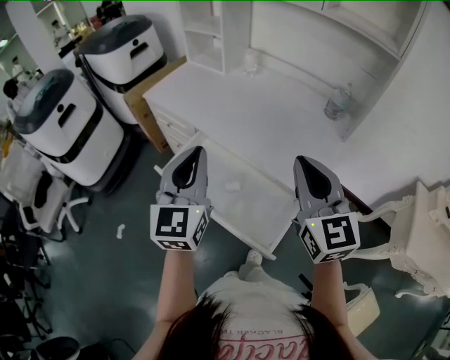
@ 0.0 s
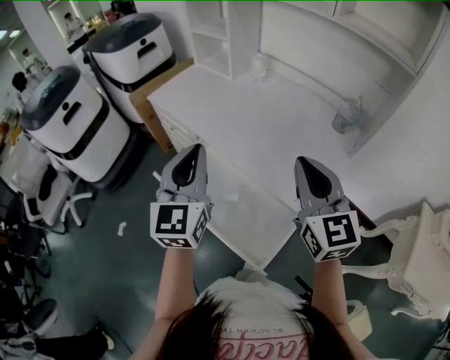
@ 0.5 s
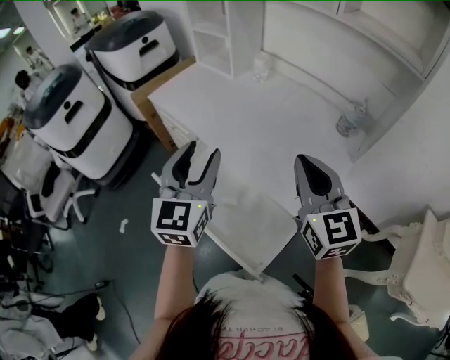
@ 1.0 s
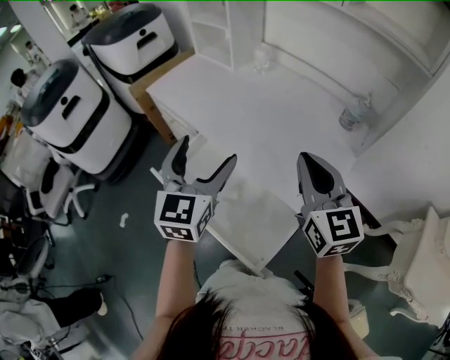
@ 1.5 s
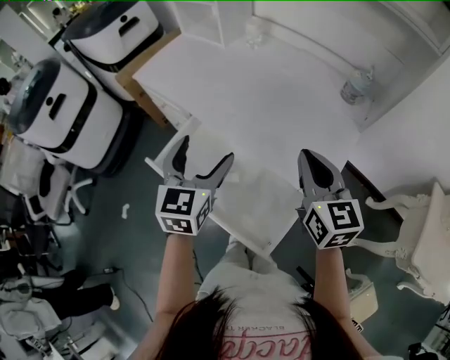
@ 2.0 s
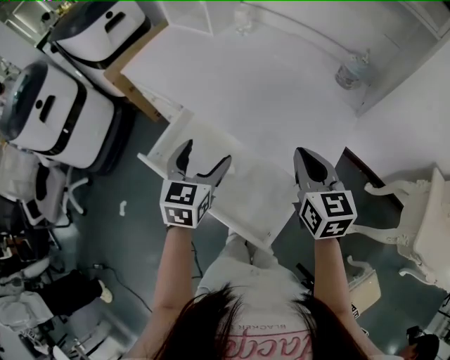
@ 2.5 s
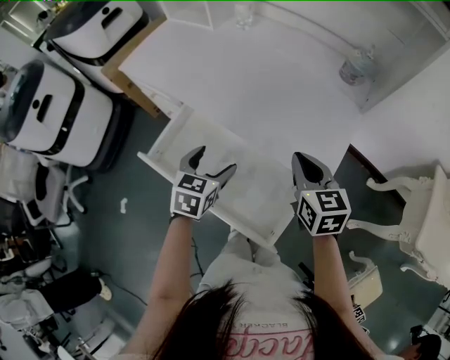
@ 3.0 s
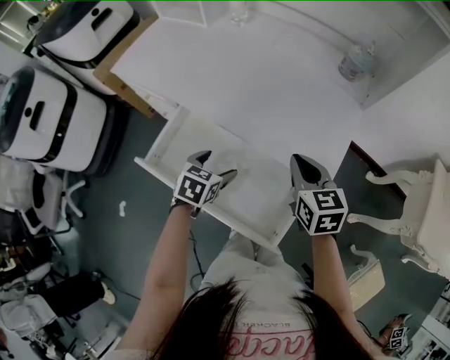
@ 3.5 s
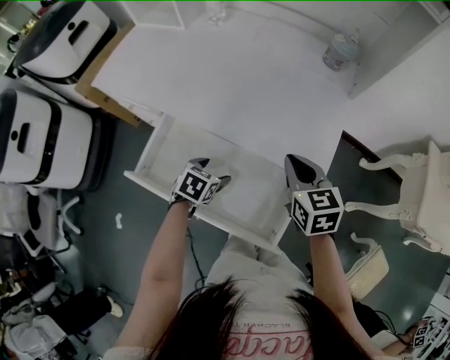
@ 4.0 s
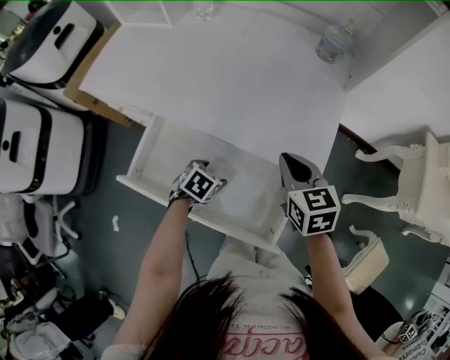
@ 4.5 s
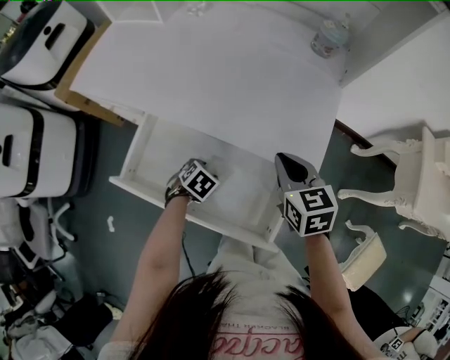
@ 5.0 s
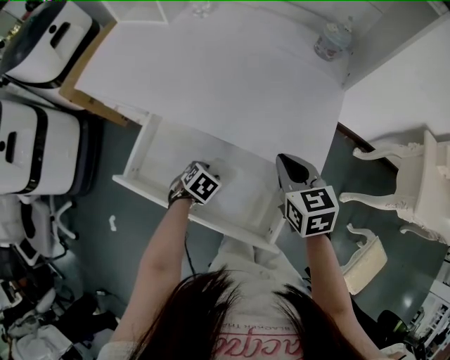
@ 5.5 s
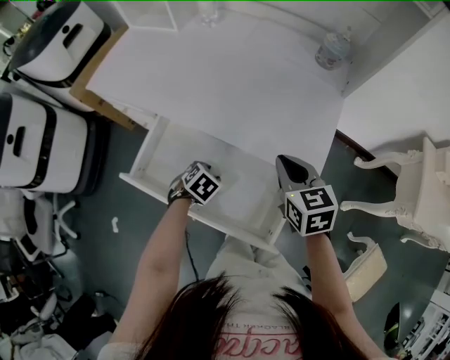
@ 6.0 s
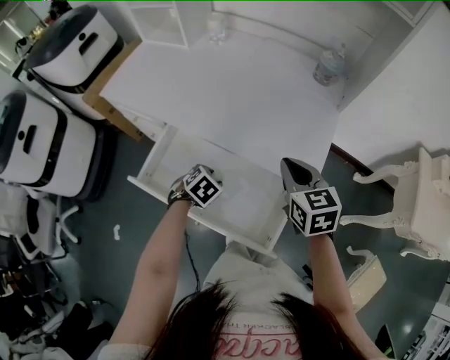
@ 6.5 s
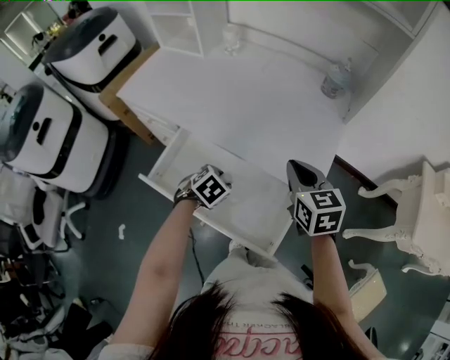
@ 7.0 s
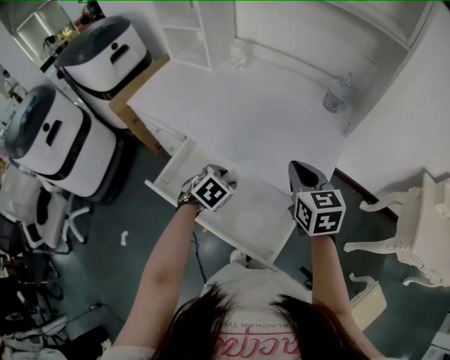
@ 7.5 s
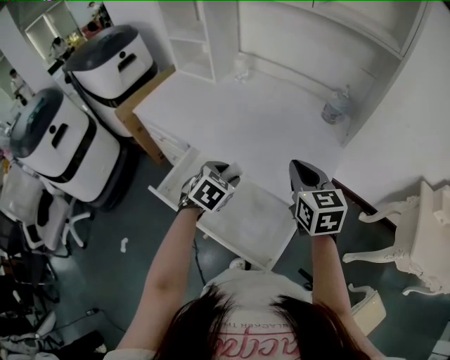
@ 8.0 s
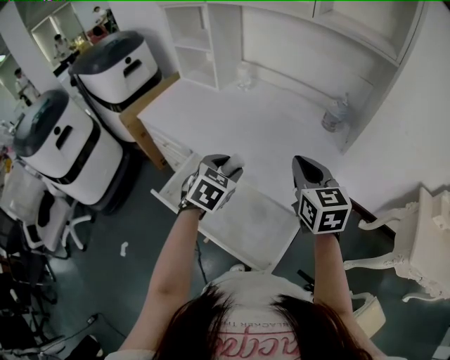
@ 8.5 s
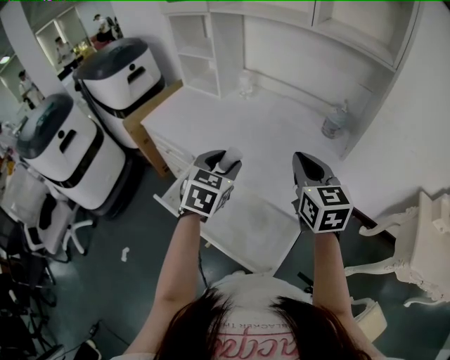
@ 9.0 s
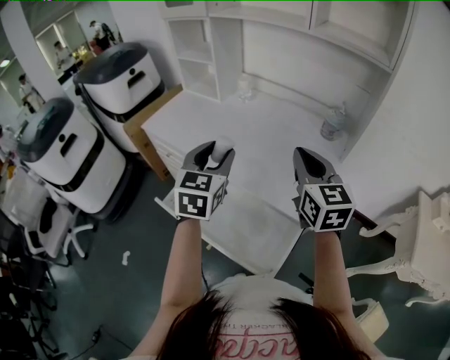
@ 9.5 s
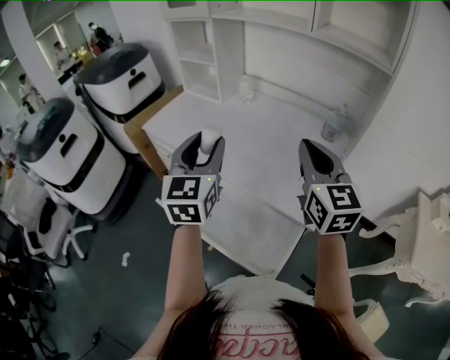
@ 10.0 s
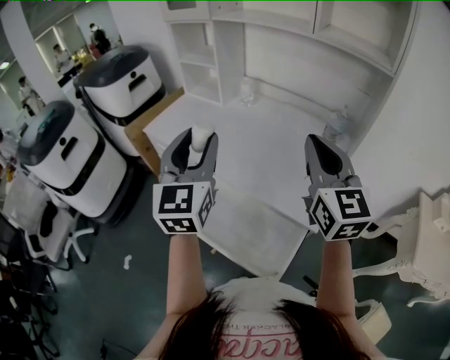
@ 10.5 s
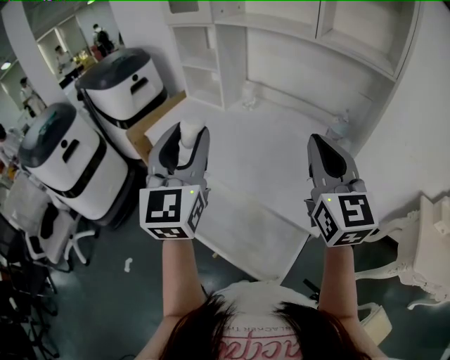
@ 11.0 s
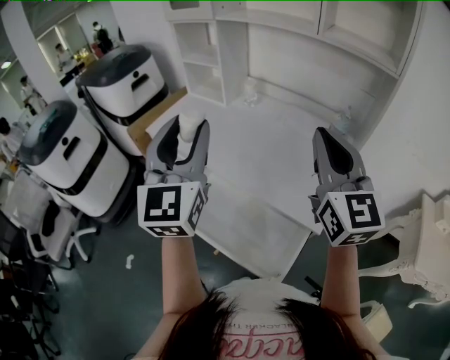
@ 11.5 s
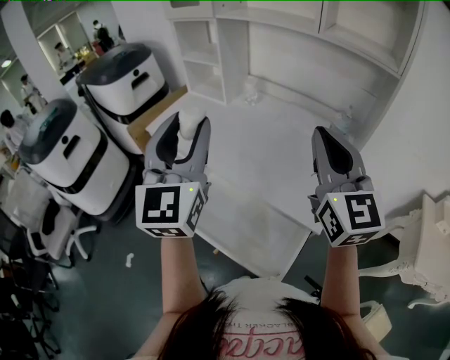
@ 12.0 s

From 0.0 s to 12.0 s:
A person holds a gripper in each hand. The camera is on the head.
From 0.0 s to 2.0 s: The right gripper goes about 15 cm downward, forward and to the right. Meanwhile the left gripper heads downward and forward, covering some 15 cm, and opens.
From 2.0 s to 4.0 s: The right gripper travels downward by approximately 15 cm, and changes its angle by some 20 degrees; the left gripper goes roughly 25 cm downward, and tilts its fingers roughly 40 degrees downward.
From 4.0 s to 6.0 s: The left gripper closes its fingers.
From 6.0 s to 8.0 s: The left gripper moves upward, approximately 20 cm, and turns by about 30 degrees; the right gripper heads upward, covering roughly 10 cm.
From 8.0 s to 10.0 s: The left gripper travels upward by approximately 25 cm, and points its fingers some 50 degrees further upward, while the right gripper travels upward by approximately 15 cm, and swivels some 20 degrees.
From 10.0 s to 12.0 s: The grippers both shift upward by about 10 cm.

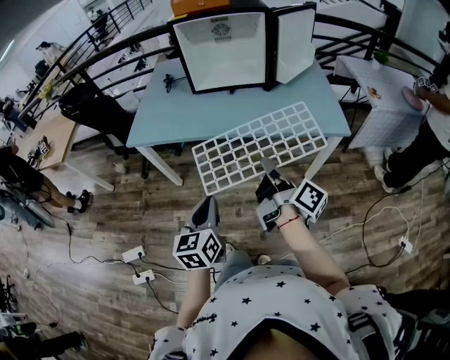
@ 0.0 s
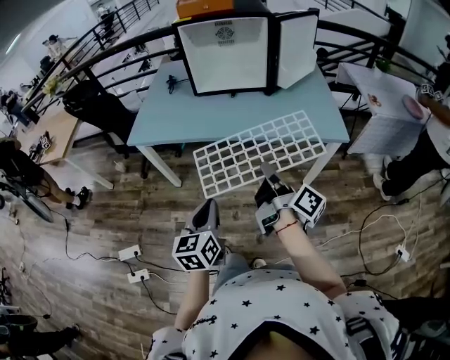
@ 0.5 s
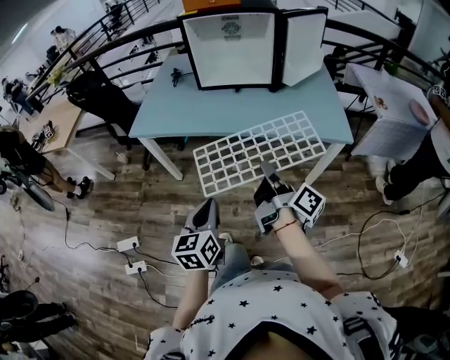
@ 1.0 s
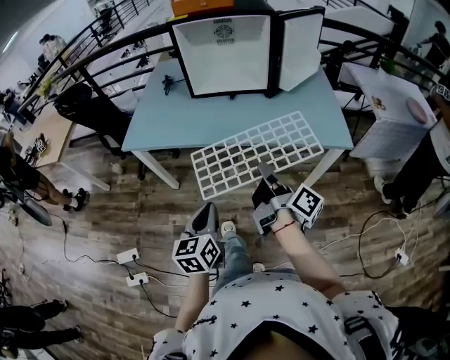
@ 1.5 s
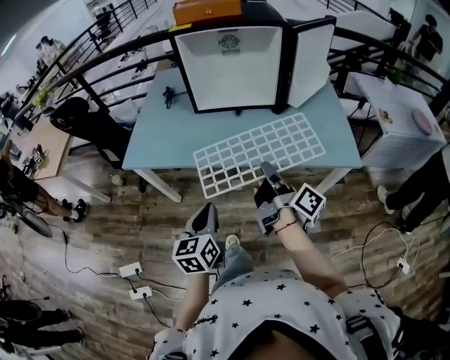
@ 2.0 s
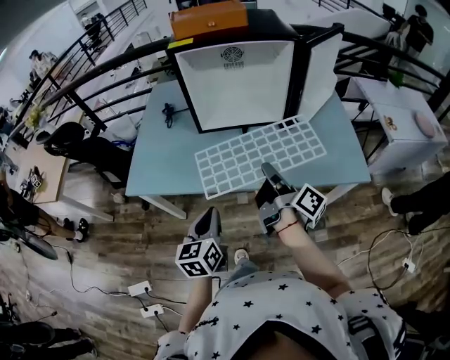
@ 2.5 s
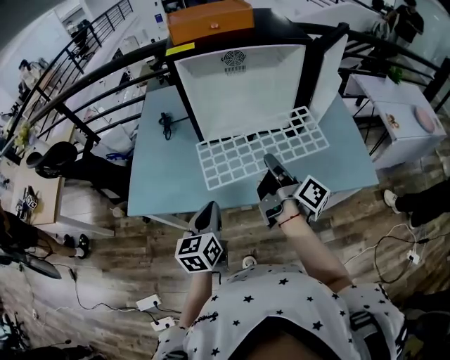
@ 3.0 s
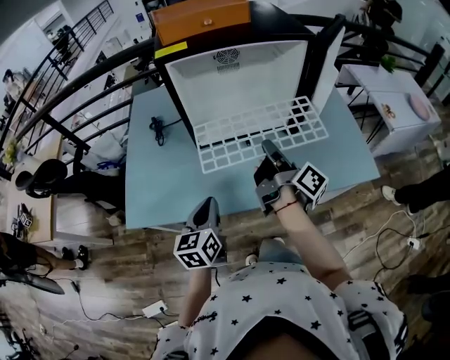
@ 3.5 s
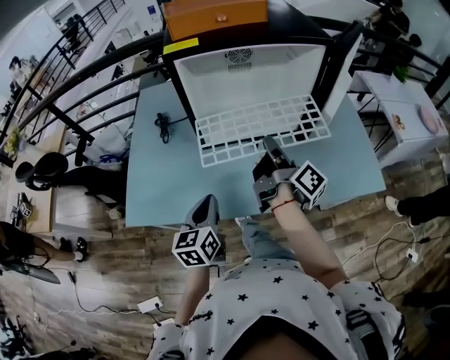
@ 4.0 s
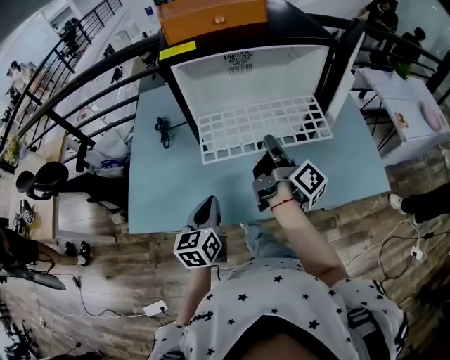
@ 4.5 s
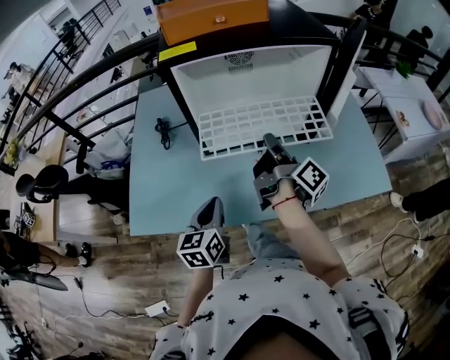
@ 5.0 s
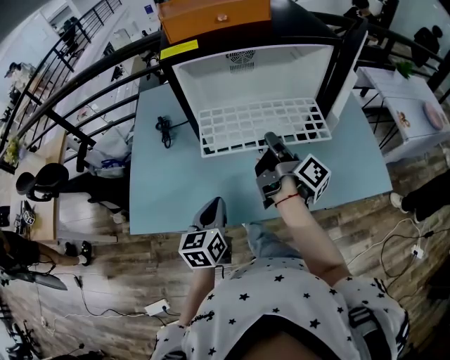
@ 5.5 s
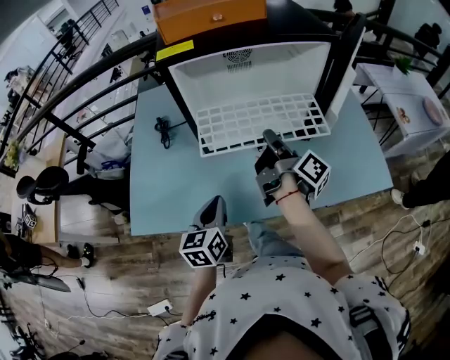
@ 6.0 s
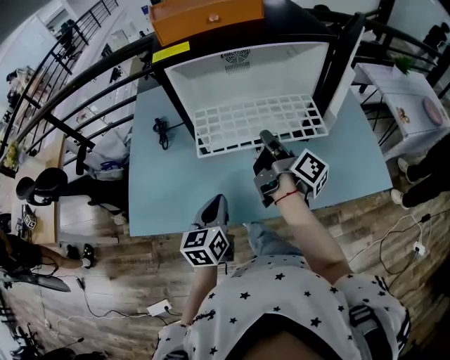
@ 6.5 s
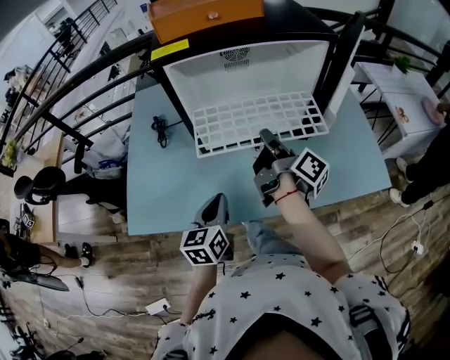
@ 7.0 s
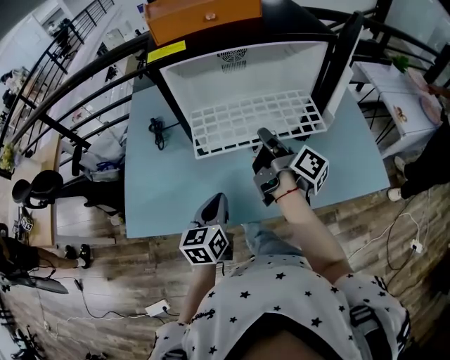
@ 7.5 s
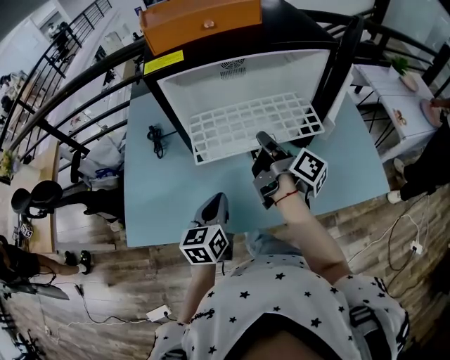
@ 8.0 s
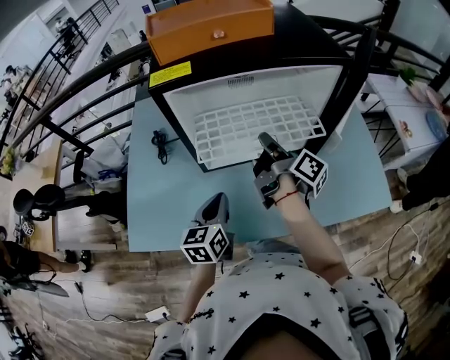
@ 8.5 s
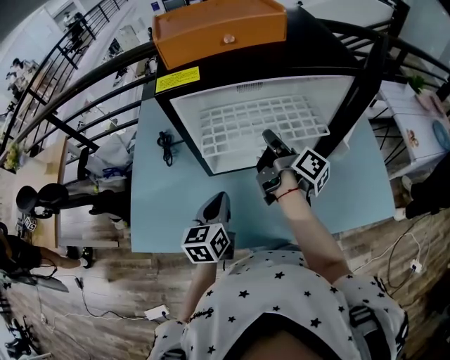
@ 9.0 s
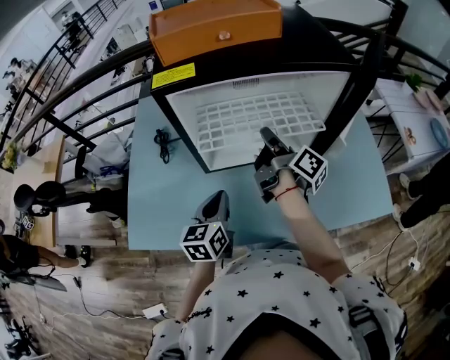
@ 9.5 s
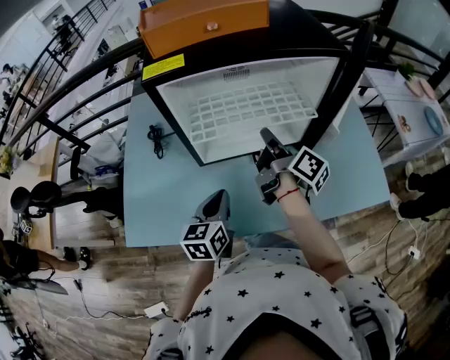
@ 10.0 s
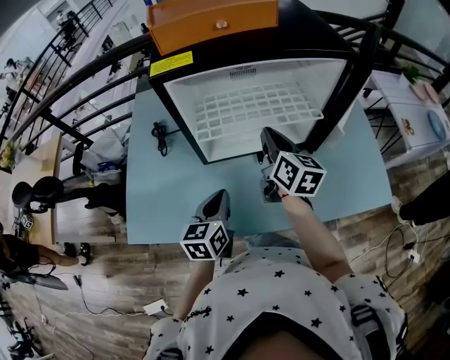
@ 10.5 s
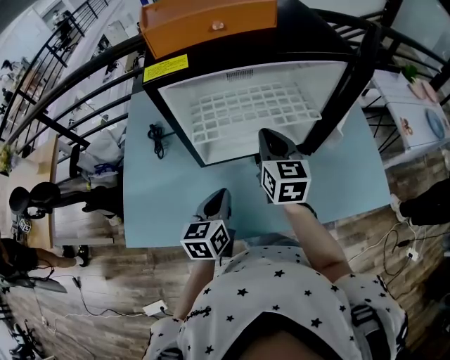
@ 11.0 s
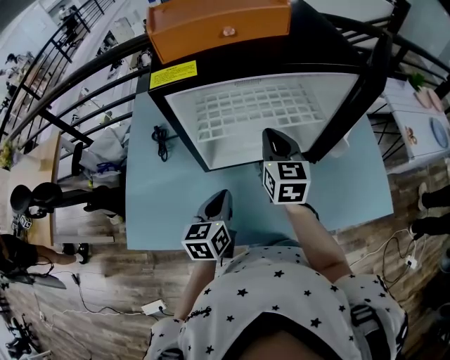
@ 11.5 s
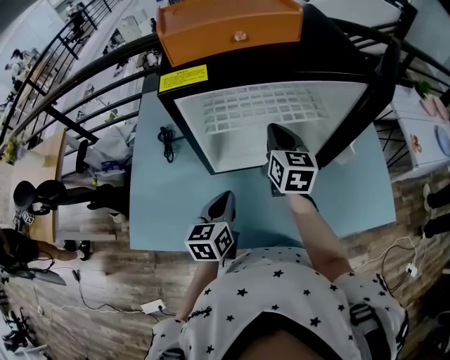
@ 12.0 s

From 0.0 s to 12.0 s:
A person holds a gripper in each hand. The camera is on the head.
From 0.0 s to 2.0 s: The grippers both shift forward by roughly 15 cm.
From 2.0 s to 4.0 s: The grippers both shift forward by approximately 25 cm.
From 4.0 s to 6.0 s: The grippers stay close to where they were, moving slightly.
From 6.0 s to 8.0 s: The left gripper changes place by some 5 cm.
From 10.0 s to 12.0 s: The right gripper goes about 5 cm forward, and rolls counterclockwise, seen from behind, by some 60 degrees.

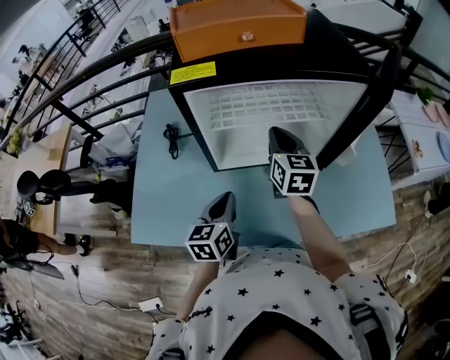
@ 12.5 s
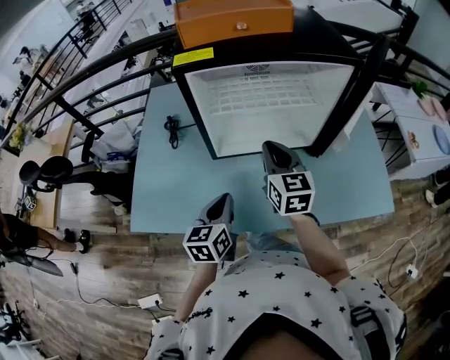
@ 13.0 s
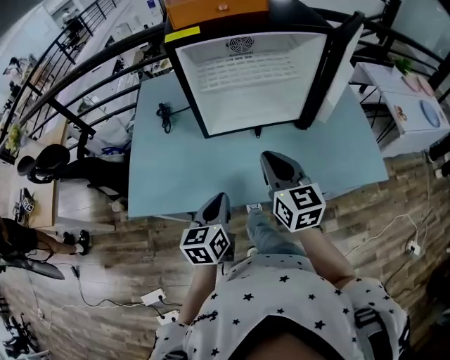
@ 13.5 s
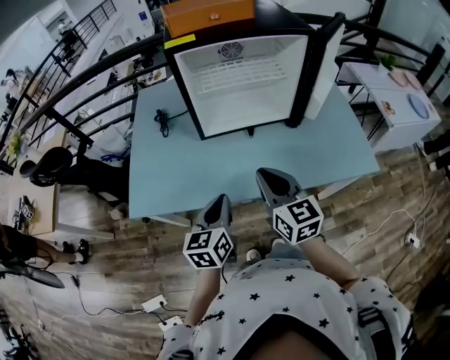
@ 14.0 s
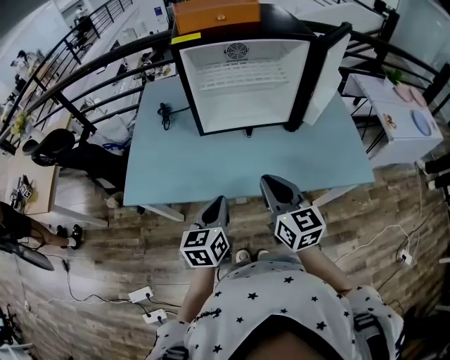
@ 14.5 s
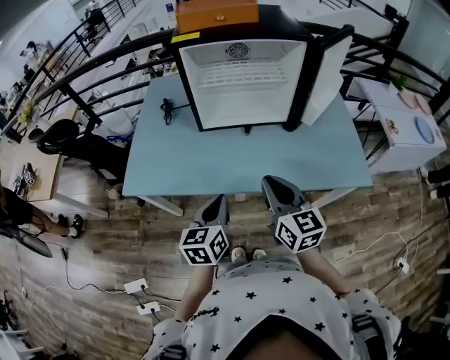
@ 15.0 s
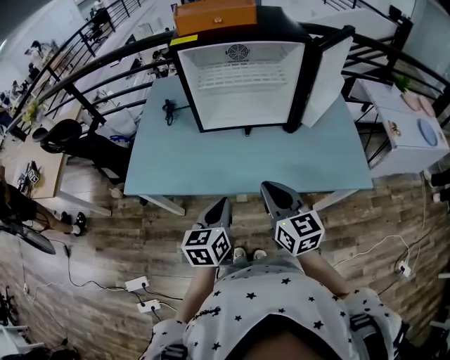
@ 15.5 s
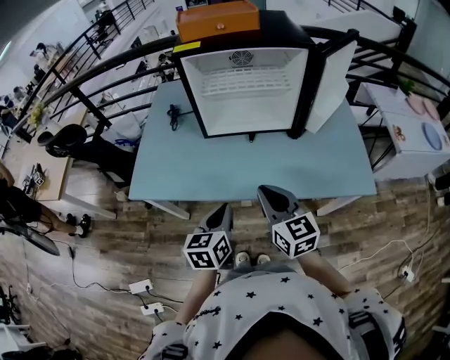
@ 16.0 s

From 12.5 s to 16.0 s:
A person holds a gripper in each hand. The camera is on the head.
From 12.5 s to 14.5 s: The right gripper heads backward, covering some 35 cm, while the left gripper heads backward, covering some 20 cm.
From 14.5 s to 16.0 s: The grippers make only small movements.
